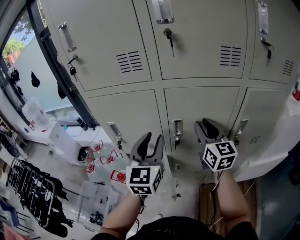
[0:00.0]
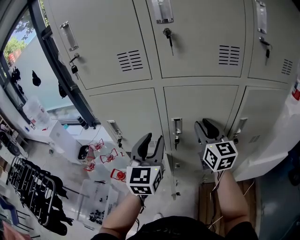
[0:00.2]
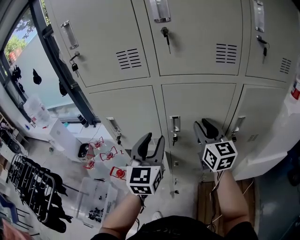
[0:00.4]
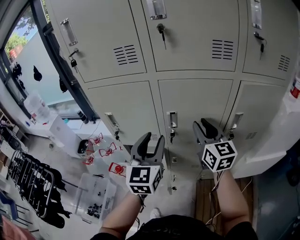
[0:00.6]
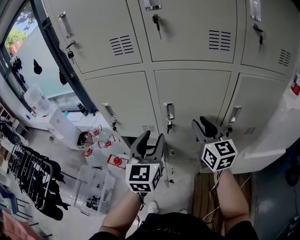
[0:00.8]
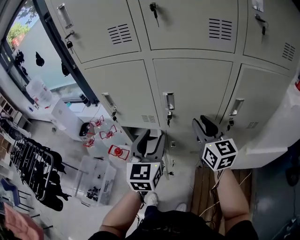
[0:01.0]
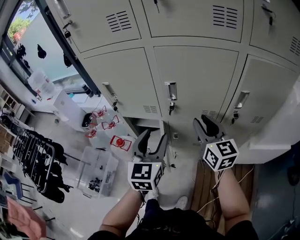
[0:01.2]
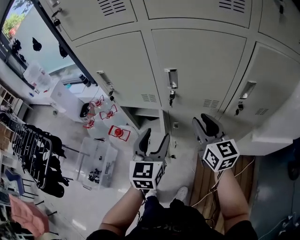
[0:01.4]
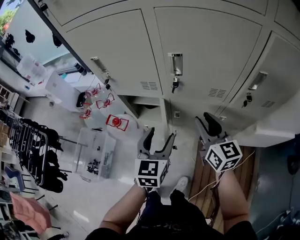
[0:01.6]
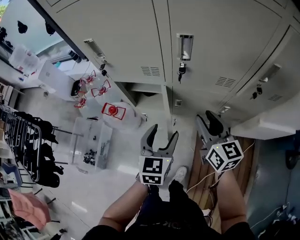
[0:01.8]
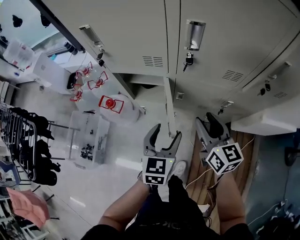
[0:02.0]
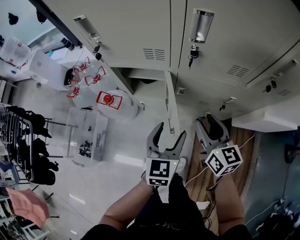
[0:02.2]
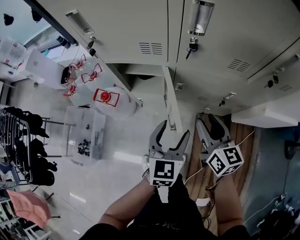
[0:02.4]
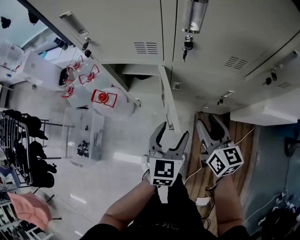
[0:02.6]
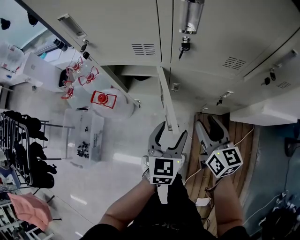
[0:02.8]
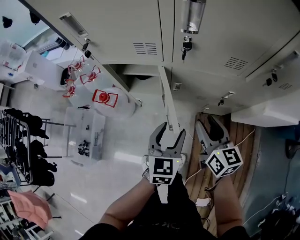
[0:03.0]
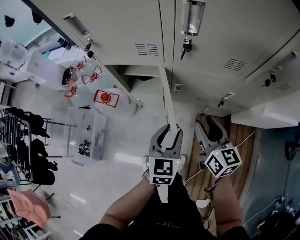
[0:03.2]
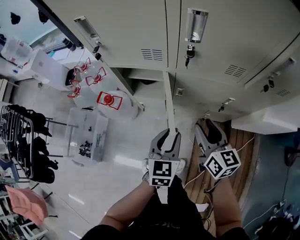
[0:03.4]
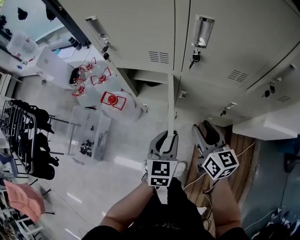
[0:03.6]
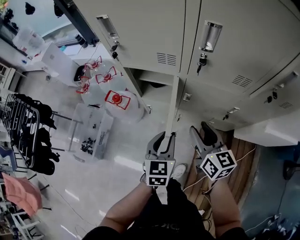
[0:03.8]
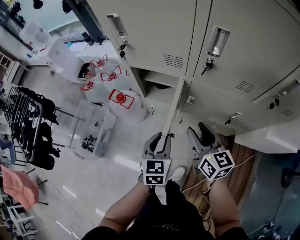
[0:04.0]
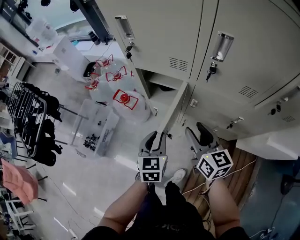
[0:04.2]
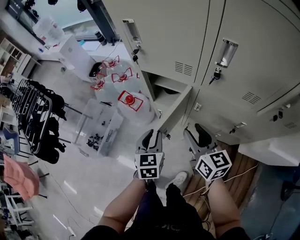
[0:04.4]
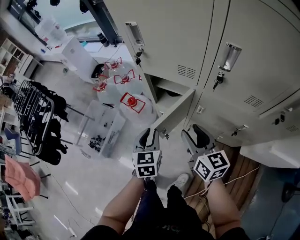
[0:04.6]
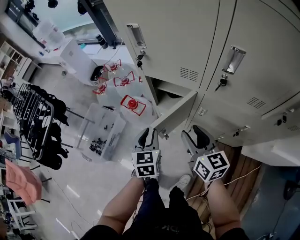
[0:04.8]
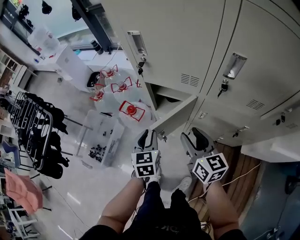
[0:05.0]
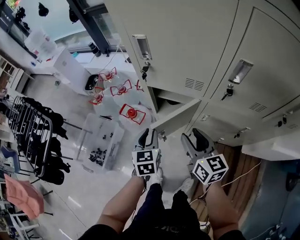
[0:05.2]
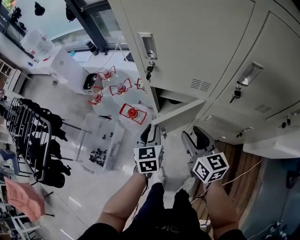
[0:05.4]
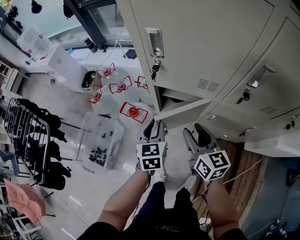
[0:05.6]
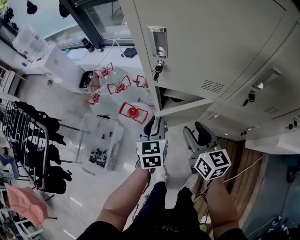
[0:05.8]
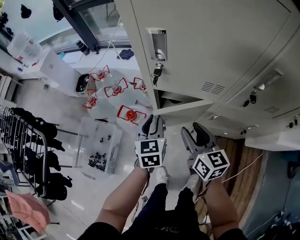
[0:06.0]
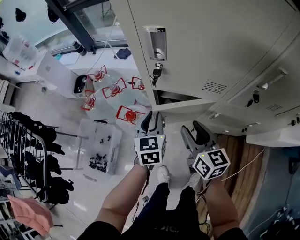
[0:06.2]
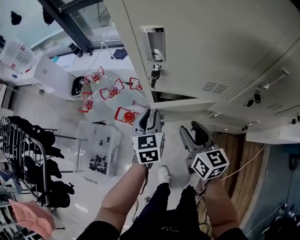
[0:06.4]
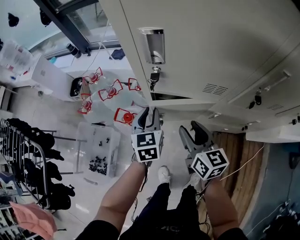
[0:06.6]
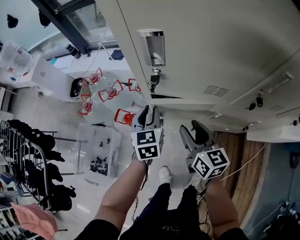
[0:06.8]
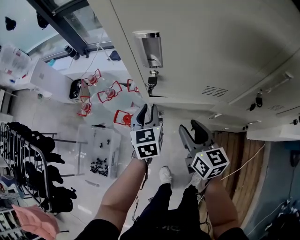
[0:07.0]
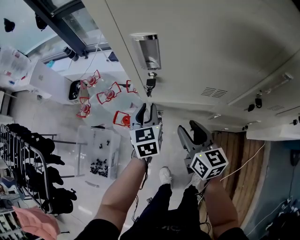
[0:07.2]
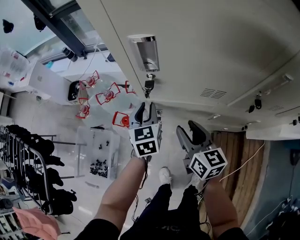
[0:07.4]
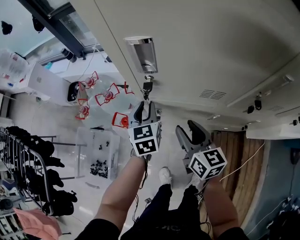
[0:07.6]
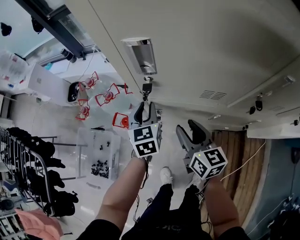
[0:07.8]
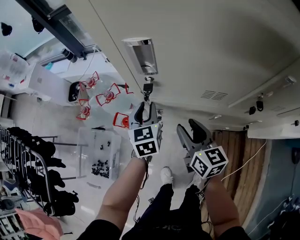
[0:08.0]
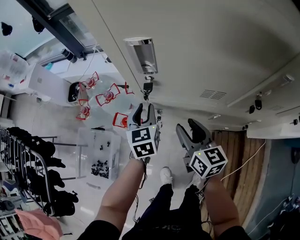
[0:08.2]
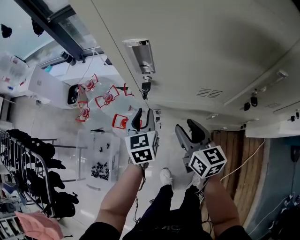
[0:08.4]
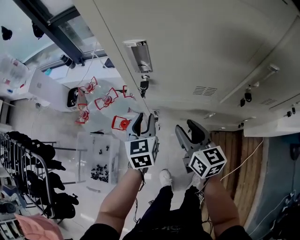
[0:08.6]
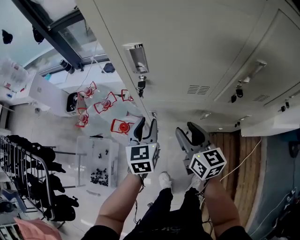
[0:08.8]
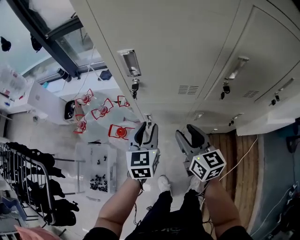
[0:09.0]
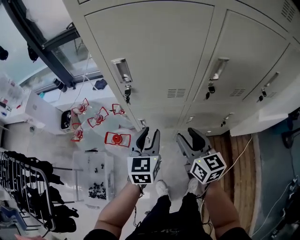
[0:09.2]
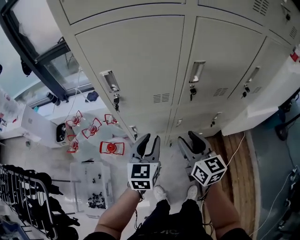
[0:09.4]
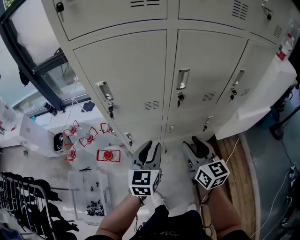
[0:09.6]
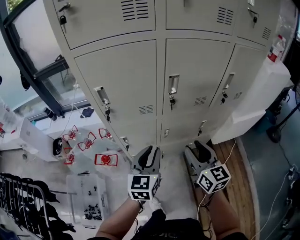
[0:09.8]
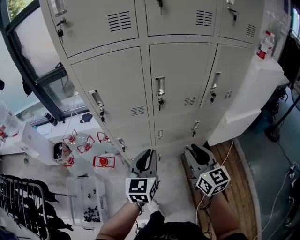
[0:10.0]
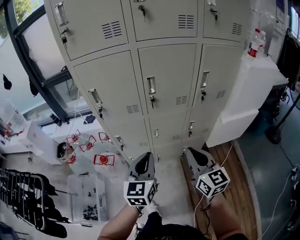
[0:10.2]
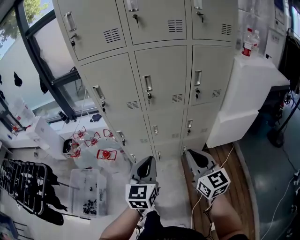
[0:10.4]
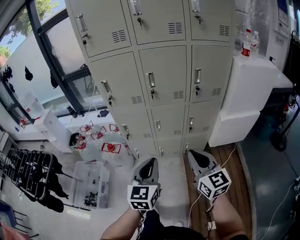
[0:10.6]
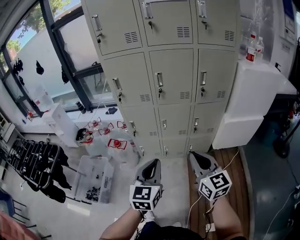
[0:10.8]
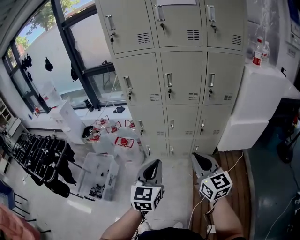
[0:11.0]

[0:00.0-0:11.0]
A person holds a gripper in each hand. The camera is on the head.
0:00.0 to 0:01.6: Both grippers travel together downward and backward, roughly 20 cm. The left gripper rotates roughly 20 degrees, and opens up.
0:01.6 to 0:03.2: The grippers both shift downward by about 15 cm. The left gripper closes its fingers.
0:03.2 to 0:04.8: The left gripper shifts by about 20 cm, and swivels some 30 degrees, while the right gripper ends up approximately 15 cm from where it was.
0:04.8 to 0:06.2: The right gripper goes approximately 15 cm forward and to the left; the left gripper goes about 15 cm forward.
0:06.2 to 0:07.8: The left gripper moves forward, about 10 cm.
0:07.8 to 0:09.4: Both grippers move backward, upward and to the right, about 20 cm. The left gripper swivels about 30 degrees.
0:09.4 to 0:11.0: Both grippers are carried backward, some 40 cm. The left gripper closes, while the right gripper closes up.

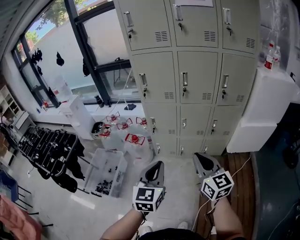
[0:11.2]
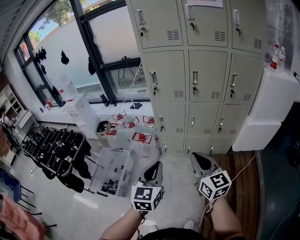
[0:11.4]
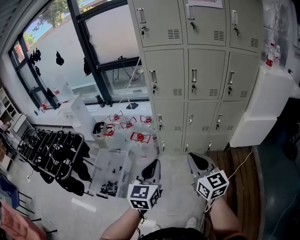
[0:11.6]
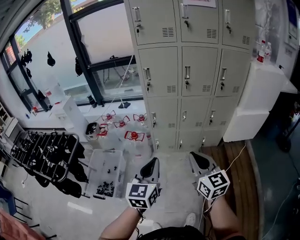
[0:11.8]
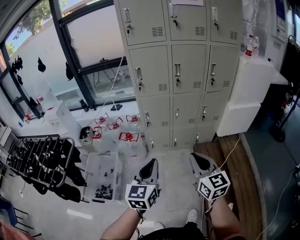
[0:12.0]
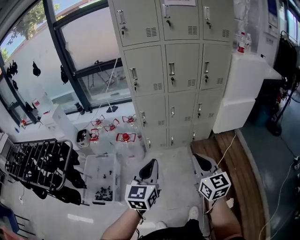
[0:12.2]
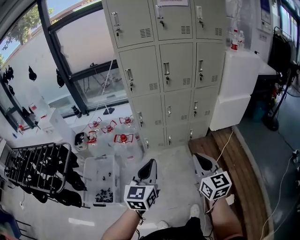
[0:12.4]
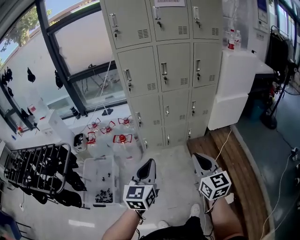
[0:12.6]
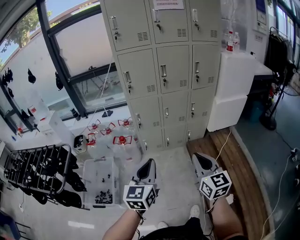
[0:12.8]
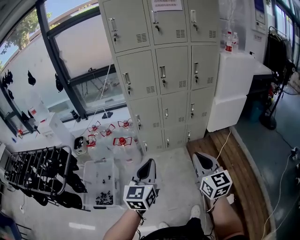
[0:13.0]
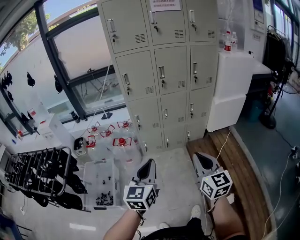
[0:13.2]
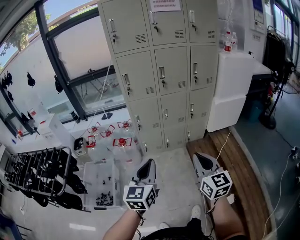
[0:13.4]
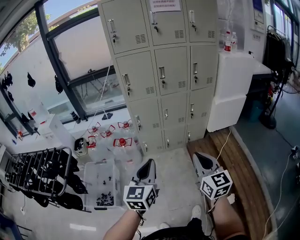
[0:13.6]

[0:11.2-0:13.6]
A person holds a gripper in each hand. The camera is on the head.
0:11.2 to 0:12.4: The left gripper goes approximately 15 cm to the left and backward. The right gripper goes roughly 20 cm backward and to the left.
0:12.4 to 0:13.6: The grippers make only small movements.

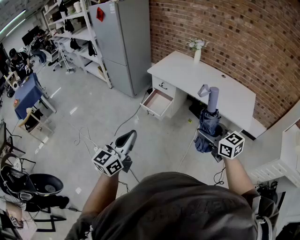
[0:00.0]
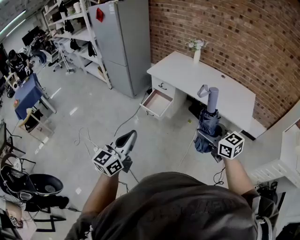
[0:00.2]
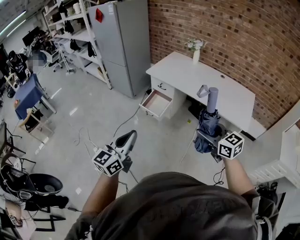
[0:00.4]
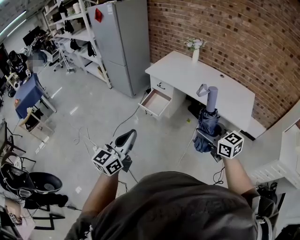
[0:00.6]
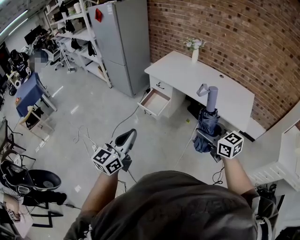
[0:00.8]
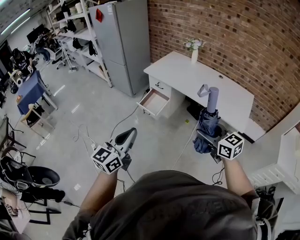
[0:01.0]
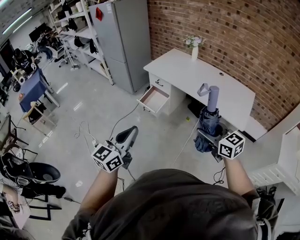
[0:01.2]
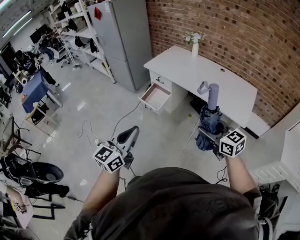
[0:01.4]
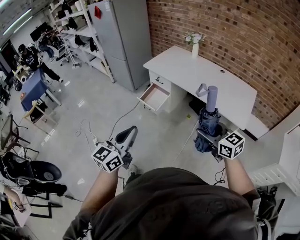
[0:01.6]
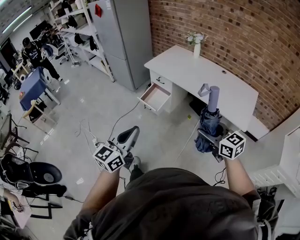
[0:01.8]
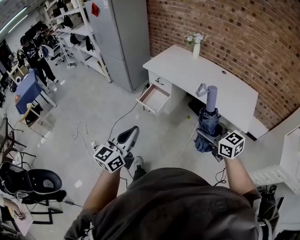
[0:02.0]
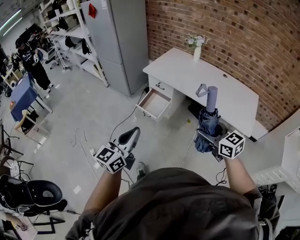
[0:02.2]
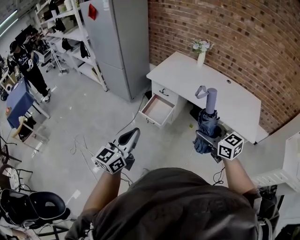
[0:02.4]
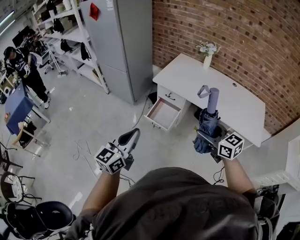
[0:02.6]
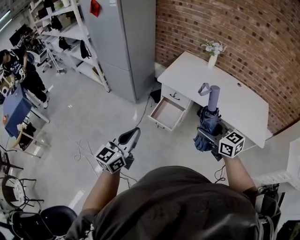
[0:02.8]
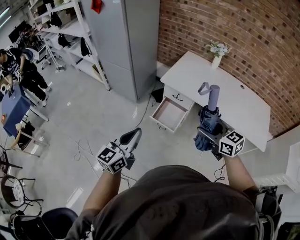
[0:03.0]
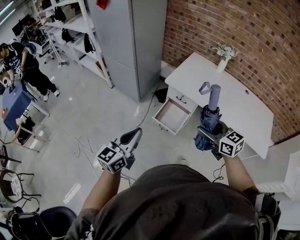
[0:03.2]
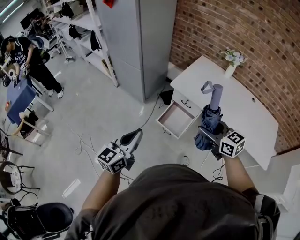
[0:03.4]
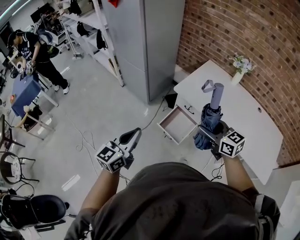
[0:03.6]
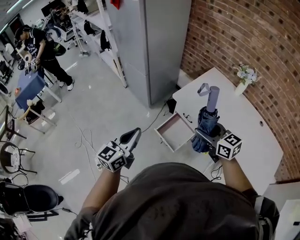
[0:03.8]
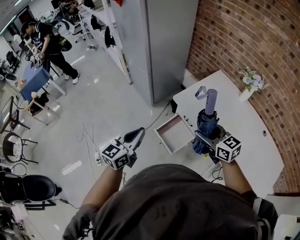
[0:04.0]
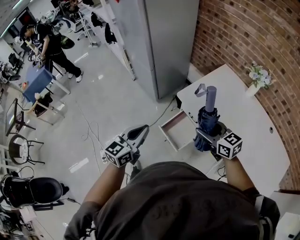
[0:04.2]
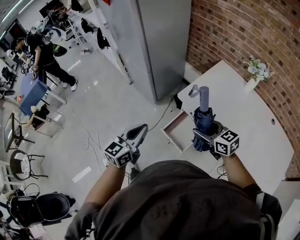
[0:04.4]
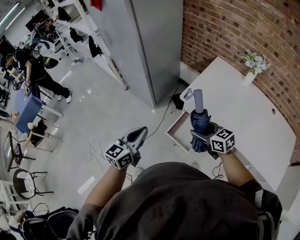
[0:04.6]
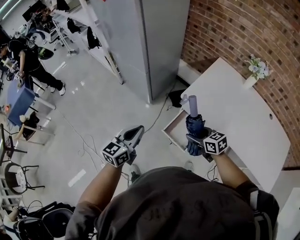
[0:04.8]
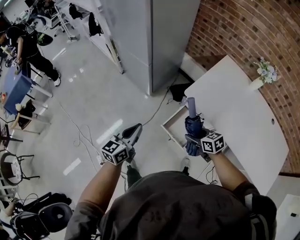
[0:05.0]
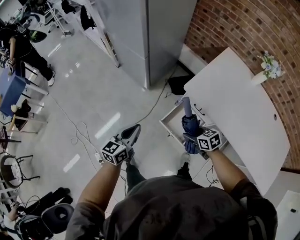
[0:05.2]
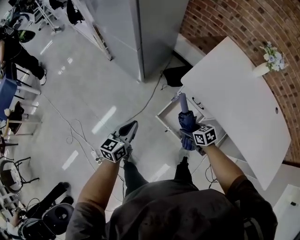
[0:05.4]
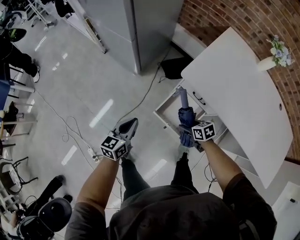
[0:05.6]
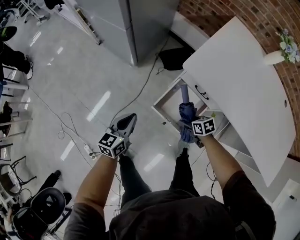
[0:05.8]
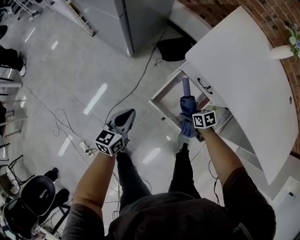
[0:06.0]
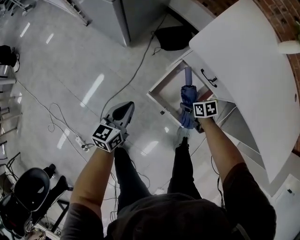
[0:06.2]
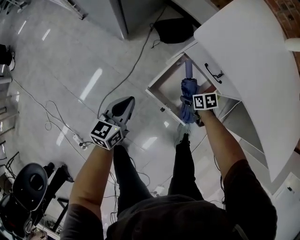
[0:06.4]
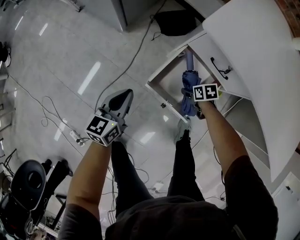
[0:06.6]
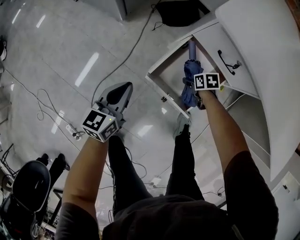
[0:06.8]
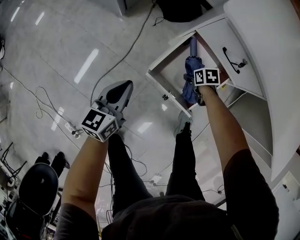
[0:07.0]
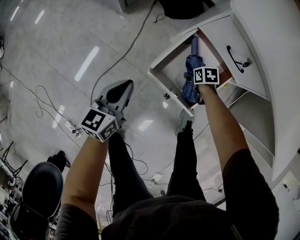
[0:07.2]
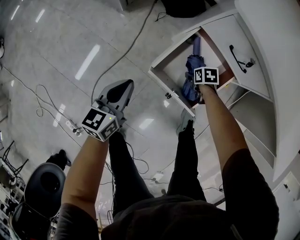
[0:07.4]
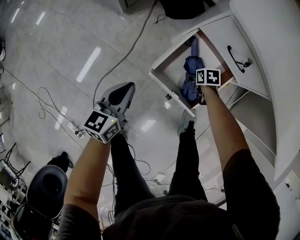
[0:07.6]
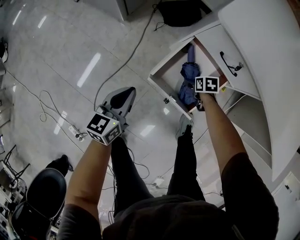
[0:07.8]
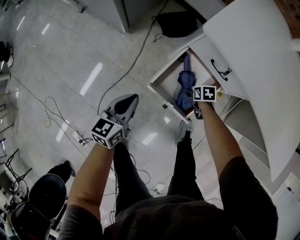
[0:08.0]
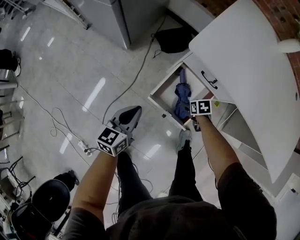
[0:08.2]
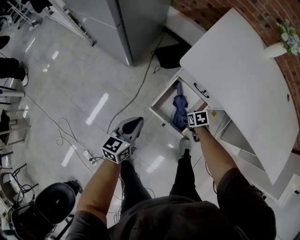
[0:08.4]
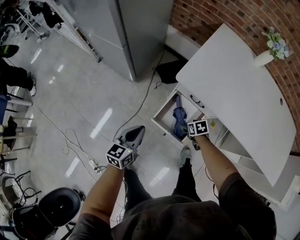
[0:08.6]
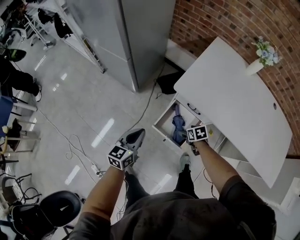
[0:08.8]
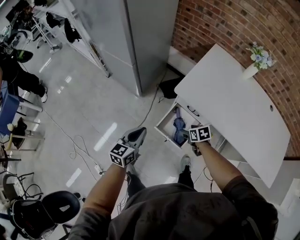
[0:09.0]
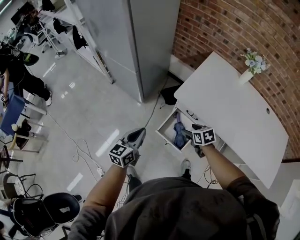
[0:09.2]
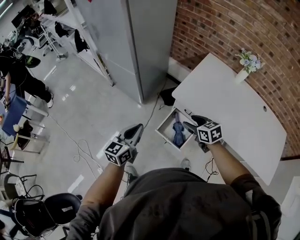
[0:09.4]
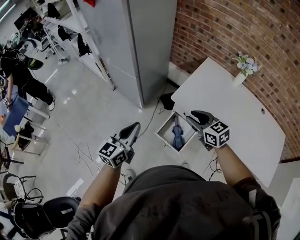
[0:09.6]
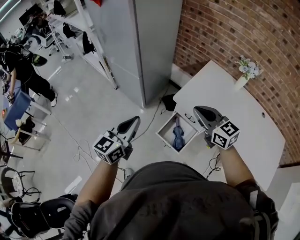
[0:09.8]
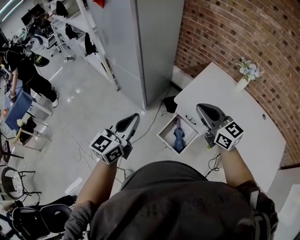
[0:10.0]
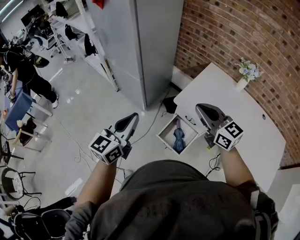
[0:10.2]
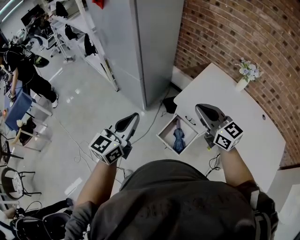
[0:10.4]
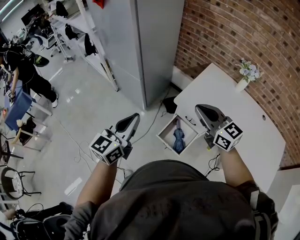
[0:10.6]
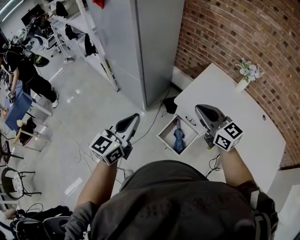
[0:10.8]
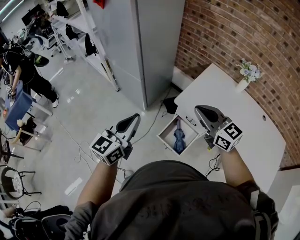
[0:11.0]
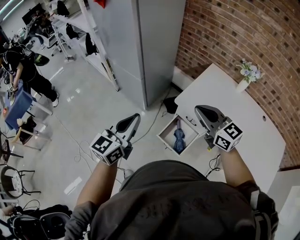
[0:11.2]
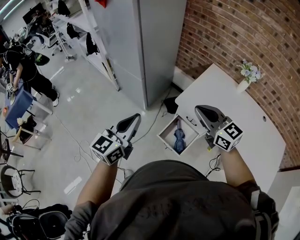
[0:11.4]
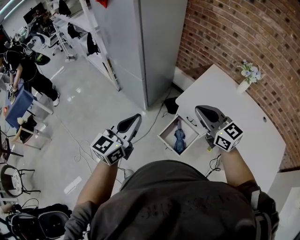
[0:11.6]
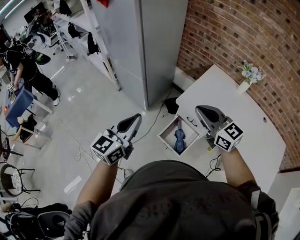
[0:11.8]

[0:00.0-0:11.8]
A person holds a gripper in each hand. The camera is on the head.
0:00.0 to 0:01.4: The grippers both shift to the right by approximately 15 cm.
0:01.4 to 0:03.0: Both grippers are carried forward and to the left, approximately 50 cm.
0:03.0 to 0:04.4: The two grippers go approximately 25 cm forward. The right gripper changes its angle by roughly 20 degrees.
0:04.4 to 0:06.0: The grippers both shift downward by some 50 cm. The right gripper points its fingers some 40 degrees further downward.
0:06.0 to 0:07.4: The grippers both shift downward by some 20 cm. The right gripper turns by about 20 degrees.
0:07.4 to 0:08.8: Both grippers move upward, about 30 cm.
0:08.8 to 0:10.4: The left gripper is displaced upward by approximately 35 cm, and swivels roughly 20 degrees, while the right gripper goes approximately 50 cm upward, tips its fingers upward by some 60 degrees, and closes up.
0:10.4 to 0:11.8: Neither gripper changes place.
